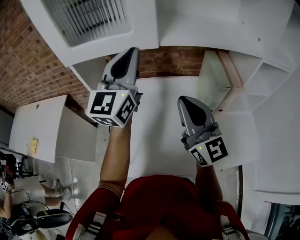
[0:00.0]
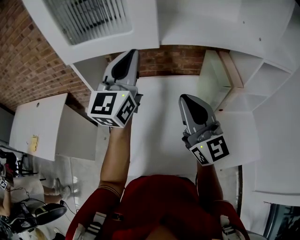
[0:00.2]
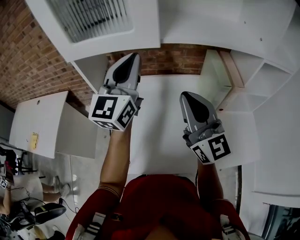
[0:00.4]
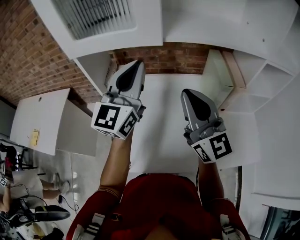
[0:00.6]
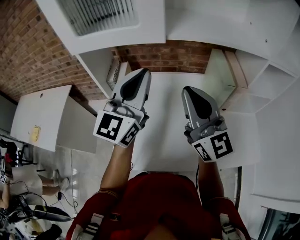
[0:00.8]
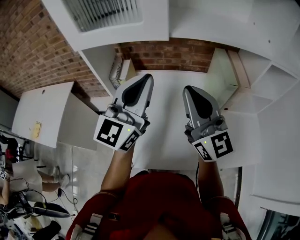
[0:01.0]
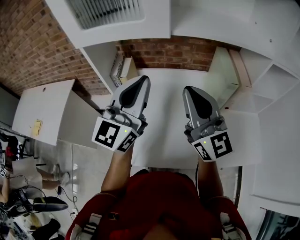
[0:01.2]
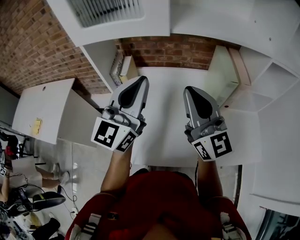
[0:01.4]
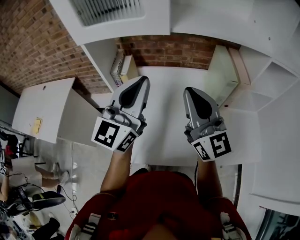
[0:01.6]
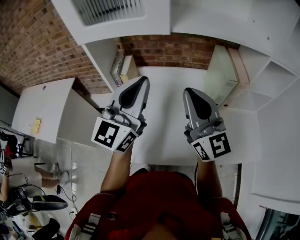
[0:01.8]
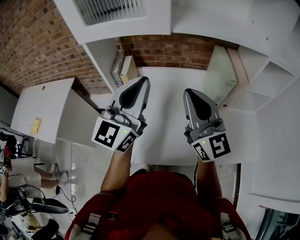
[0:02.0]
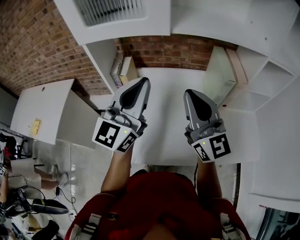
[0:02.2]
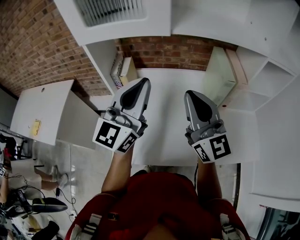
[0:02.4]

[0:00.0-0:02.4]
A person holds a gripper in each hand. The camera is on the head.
0:00.0 to 0:01.2: The left gripper goes roughly 10 cm backward and downward.
0:01.2 to 0:02.4: The grippers make only small movements.

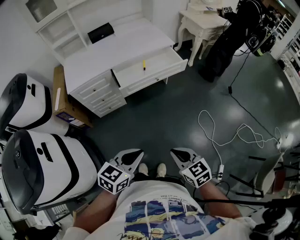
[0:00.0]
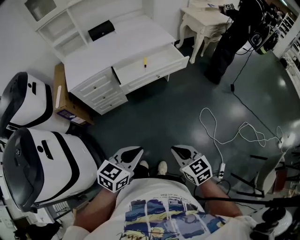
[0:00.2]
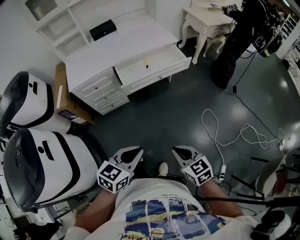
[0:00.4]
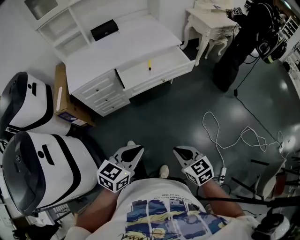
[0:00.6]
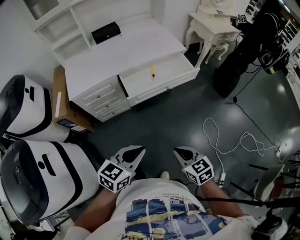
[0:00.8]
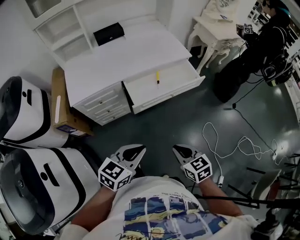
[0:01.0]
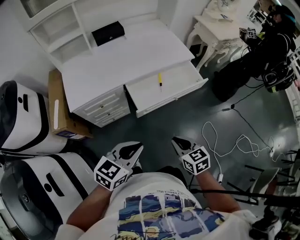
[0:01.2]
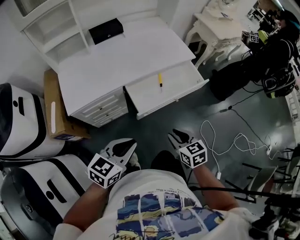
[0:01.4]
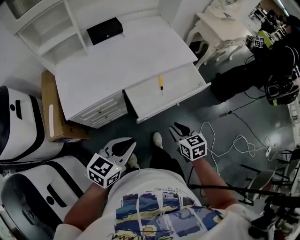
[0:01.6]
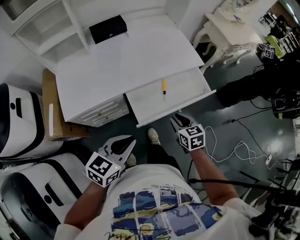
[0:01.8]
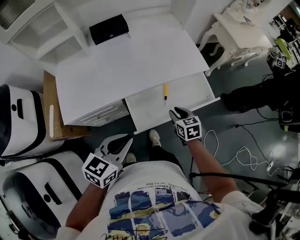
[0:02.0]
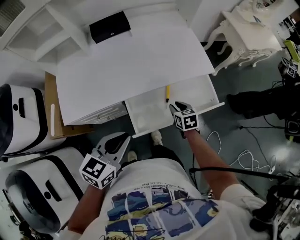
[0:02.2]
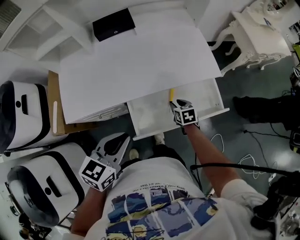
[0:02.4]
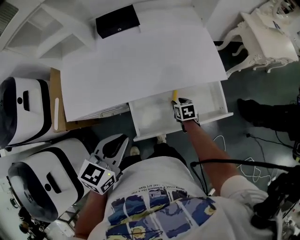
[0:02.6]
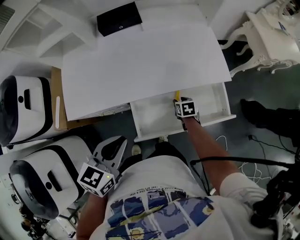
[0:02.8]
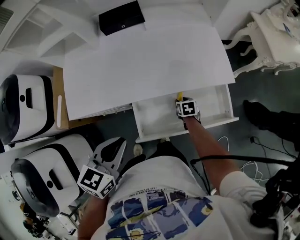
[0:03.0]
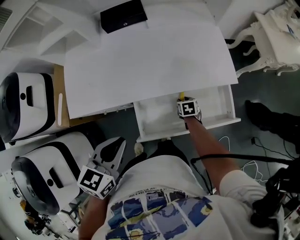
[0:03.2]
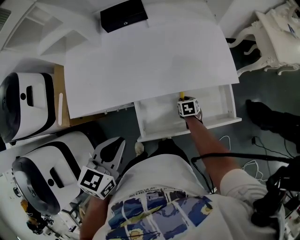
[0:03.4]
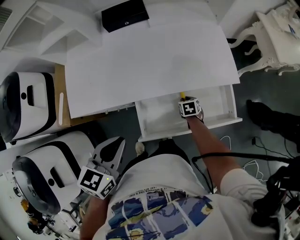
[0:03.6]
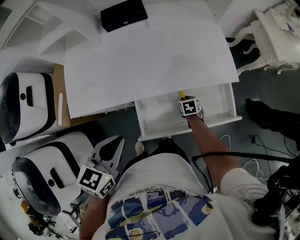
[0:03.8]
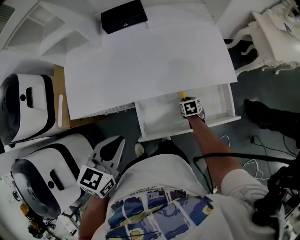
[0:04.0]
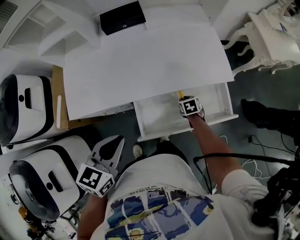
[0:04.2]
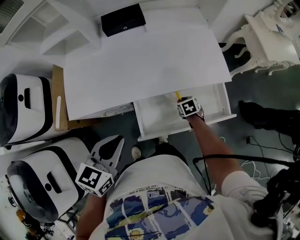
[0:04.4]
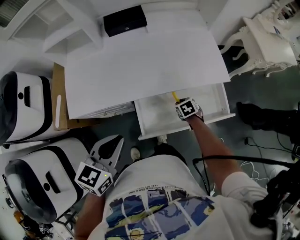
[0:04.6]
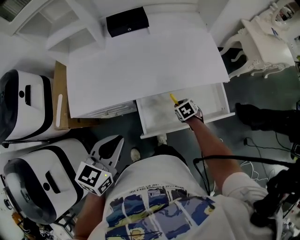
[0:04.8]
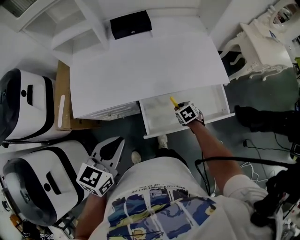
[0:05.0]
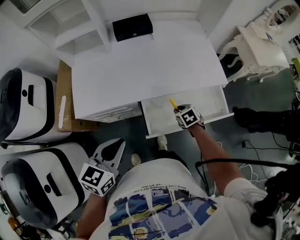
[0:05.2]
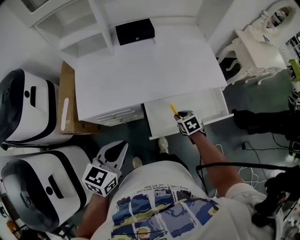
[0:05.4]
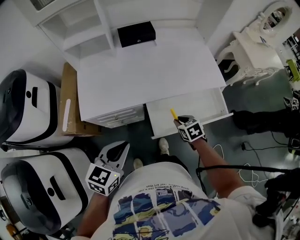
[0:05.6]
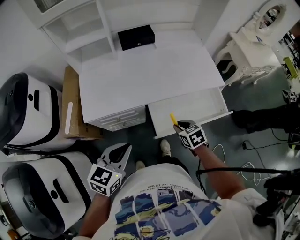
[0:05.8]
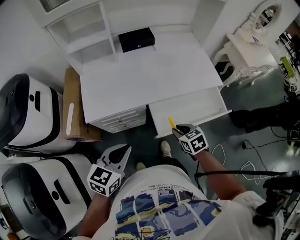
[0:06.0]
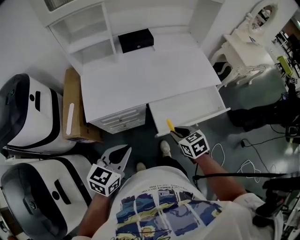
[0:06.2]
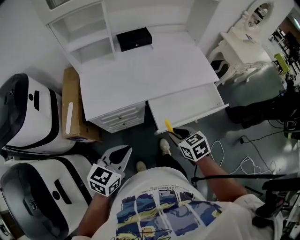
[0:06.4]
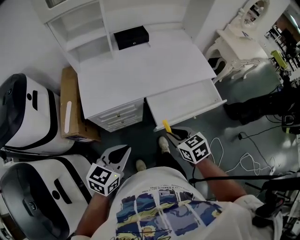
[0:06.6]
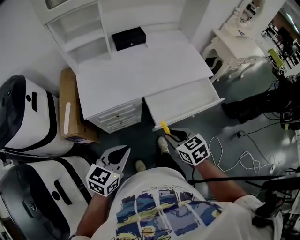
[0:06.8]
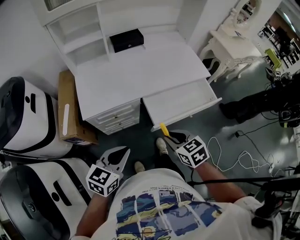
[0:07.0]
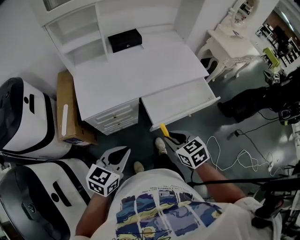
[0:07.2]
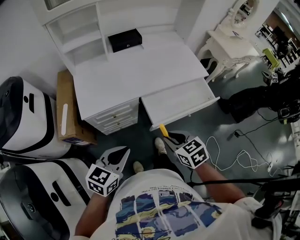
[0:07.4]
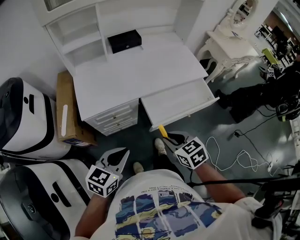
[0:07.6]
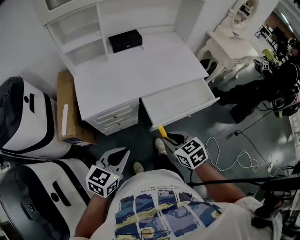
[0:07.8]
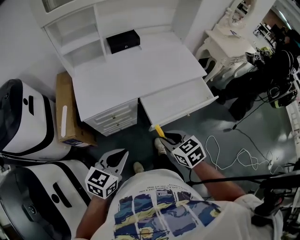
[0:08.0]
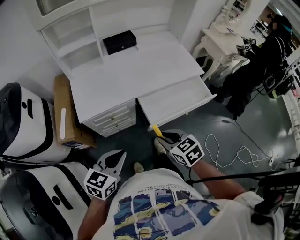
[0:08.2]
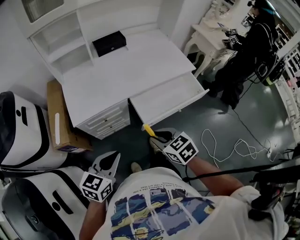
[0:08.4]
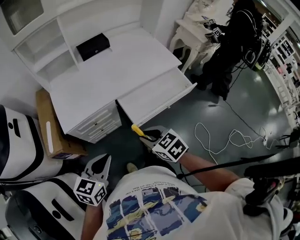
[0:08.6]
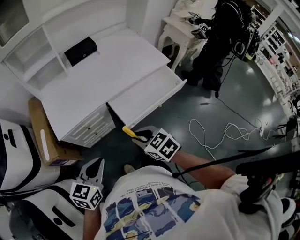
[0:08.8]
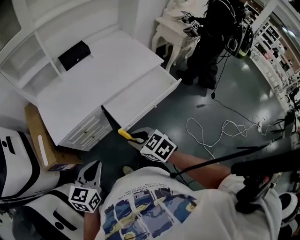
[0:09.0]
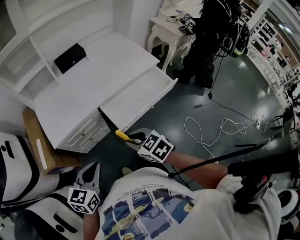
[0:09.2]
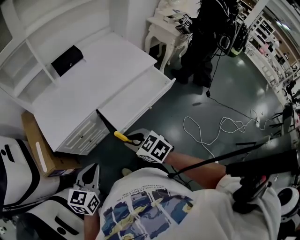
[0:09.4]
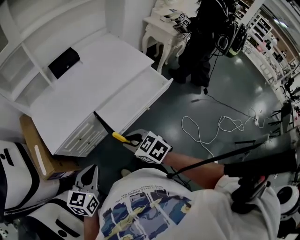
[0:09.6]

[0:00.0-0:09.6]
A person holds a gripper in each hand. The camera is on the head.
0:00.0 to 0:01.6: The right gripper heads forward, covering about 35 cm, and opens its fingers, while the left gripper travels forward and to the left by about 35 cm.
0:01.6 to 0:03.2: The left gripper heads forward, covering some 20 cm, and swivels some 30 degrees; the right gripper moves forward and downward, approximately 40 cm, and changes its angle by roughly 30 degrees.
0:03.2 to 0:04.8: The right gripper heads upward, covering some 5 cm, and rotates about 20 degrees. Meanwhile the left gripper shifts by roughly 5 cm.
0:04.8 to 0:06.4: The right gripper travels upward, backward and to the left by about 35 cm, and rotates approximately 20 degrees. Meanwhile the left gripper goes about 15 cm backward and to the left.
0:06.4 to 0:08.0: The right gripper travels backward by roughly 5 cm.
0:08.0 to 0:09.6: The grippers stay close to where they were, moving slightly.

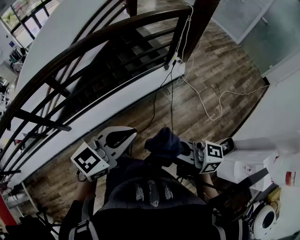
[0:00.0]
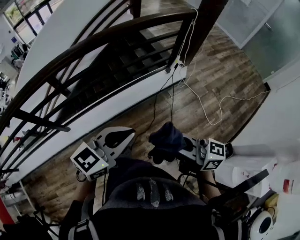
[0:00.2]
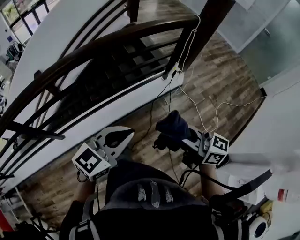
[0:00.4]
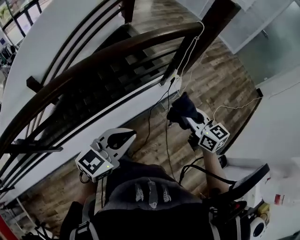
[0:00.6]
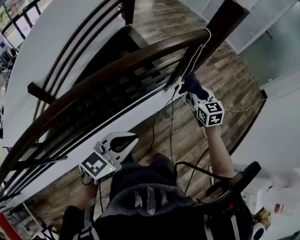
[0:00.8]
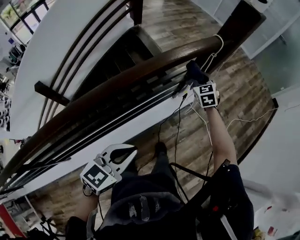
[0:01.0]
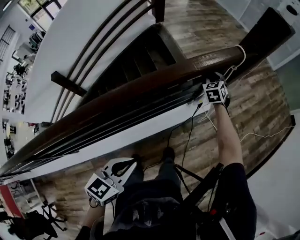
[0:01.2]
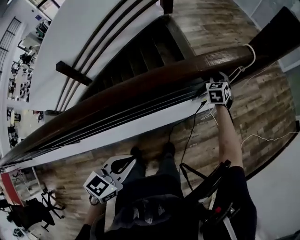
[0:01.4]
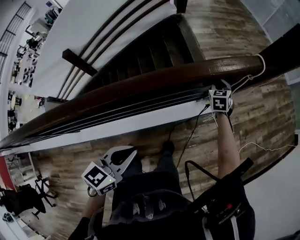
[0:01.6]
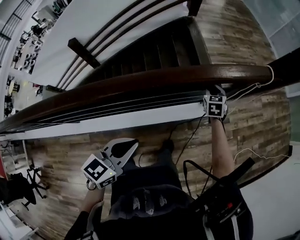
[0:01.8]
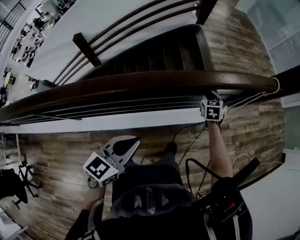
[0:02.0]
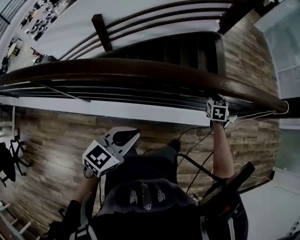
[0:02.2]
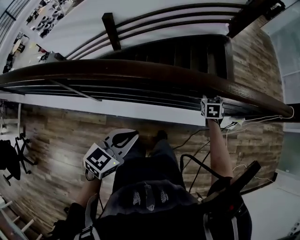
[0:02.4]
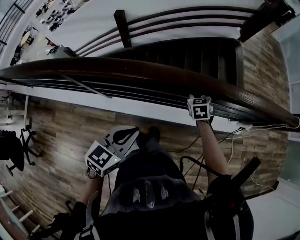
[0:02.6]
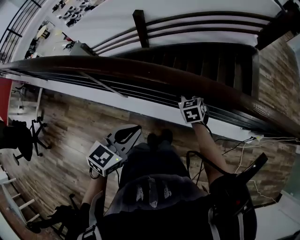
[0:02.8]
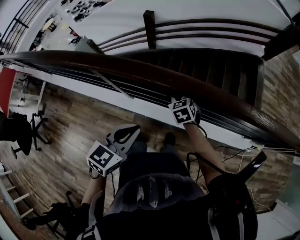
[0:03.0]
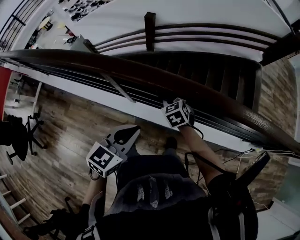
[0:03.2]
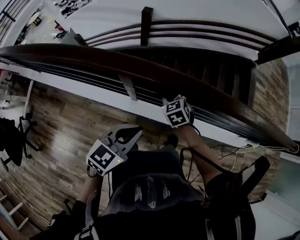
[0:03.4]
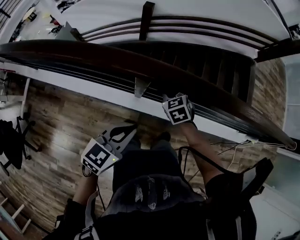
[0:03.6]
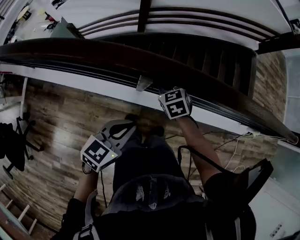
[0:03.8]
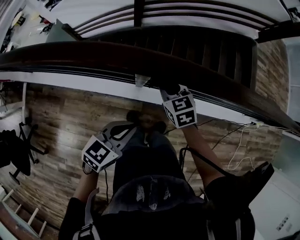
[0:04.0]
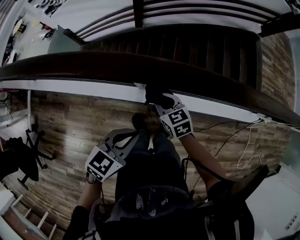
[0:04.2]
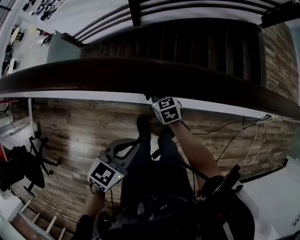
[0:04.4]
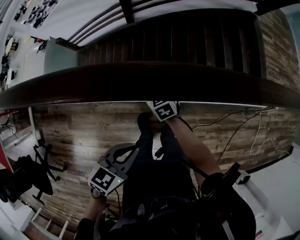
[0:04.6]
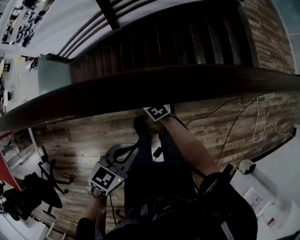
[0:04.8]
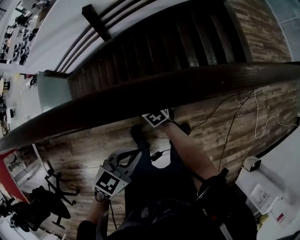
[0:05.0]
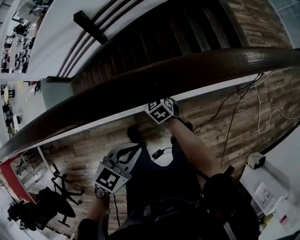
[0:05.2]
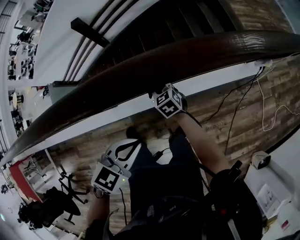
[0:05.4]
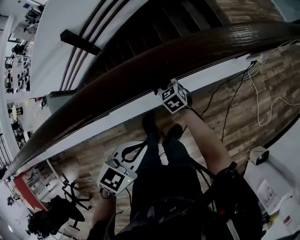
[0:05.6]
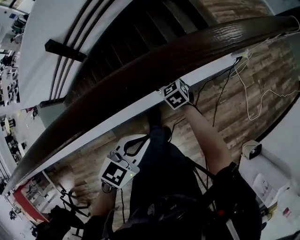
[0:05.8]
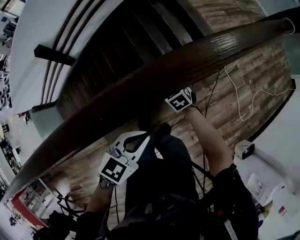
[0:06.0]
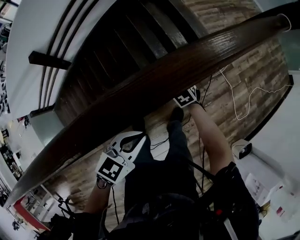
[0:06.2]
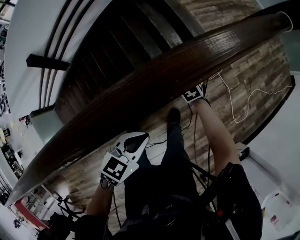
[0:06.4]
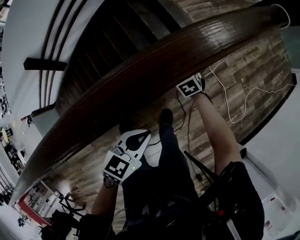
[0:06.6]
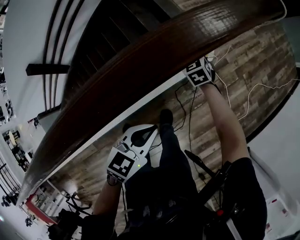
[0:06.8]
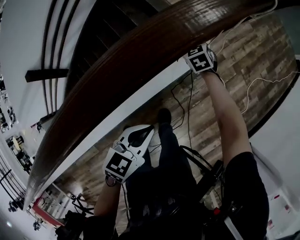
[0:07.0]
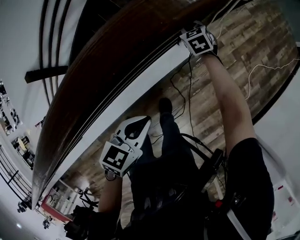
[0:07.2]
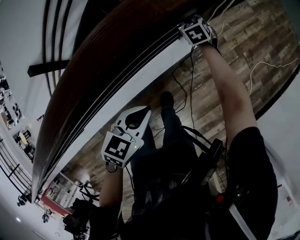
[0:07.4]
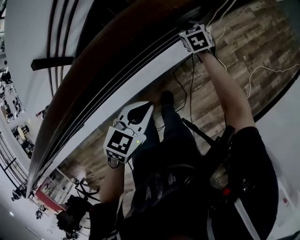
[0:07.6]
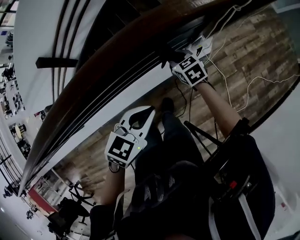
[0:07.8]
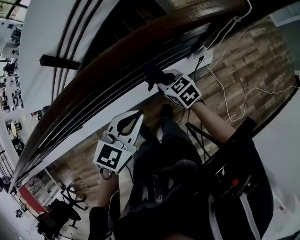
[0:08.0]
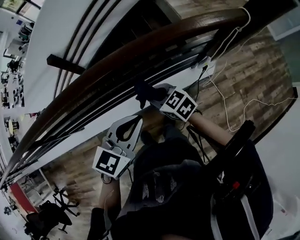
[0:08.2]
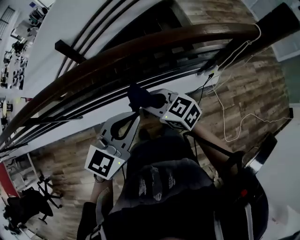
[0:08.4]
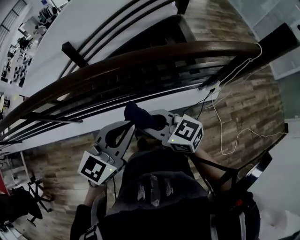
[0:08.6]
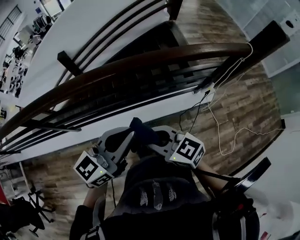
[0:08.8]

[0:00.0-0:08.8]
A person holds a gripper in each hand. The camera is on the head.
0:00.0 to 0:01.4: Both grippers are carried approximately 70 cm. The left gripper rotates roughly 30 degrees, while the right gripper tilts its fingers roughly 50 degrees downward.
0:01.4 to 0:03.0: The pair of grippers is taken approximately 80 cm. The left gripper turns by roughly 30 degrees. The right gripper swivels approximately 60 degrees.
0:03.0 to 0:04.4: Both grippers travel together to the left and downward, roughly 35 cm. The right gripper changes its angle by approximately 20 degrees.
0:04.4 to 0:05.8: Both grippers are carried some 60 cm. The right gripper rotates about 20 degrees; the left gripper changes its angle by about 30 degrees.
0:05.8 to 0:07.4: Both grippers are carried forward and to the right, roughly 50 cm. The right gripper turns by approximately 20 degrees.
0:07.4 to 0:08.8: The right gripper shifts by roughly 80 cm, and tips its fingers upward by some 30 degrees; the left gripper ends up approximately 40 cm from where it was, and tips its fingers upward by about 40 degrees.

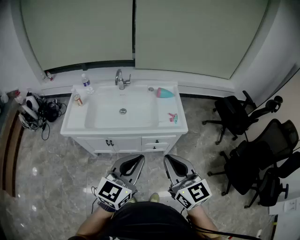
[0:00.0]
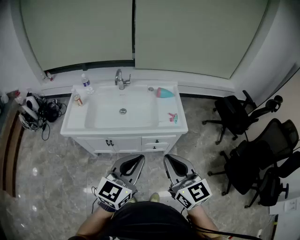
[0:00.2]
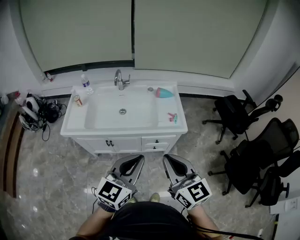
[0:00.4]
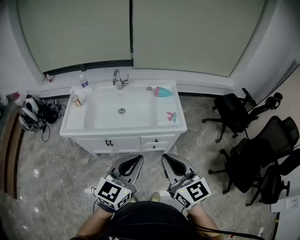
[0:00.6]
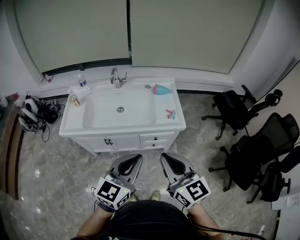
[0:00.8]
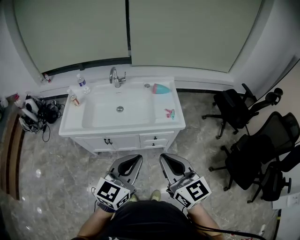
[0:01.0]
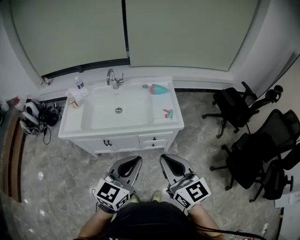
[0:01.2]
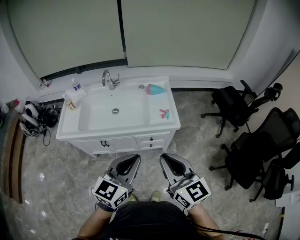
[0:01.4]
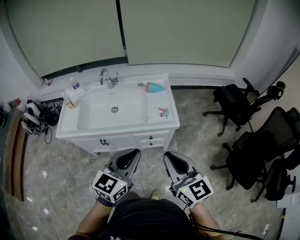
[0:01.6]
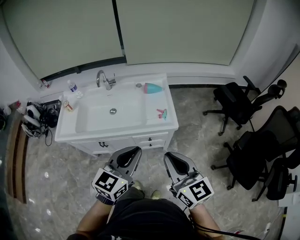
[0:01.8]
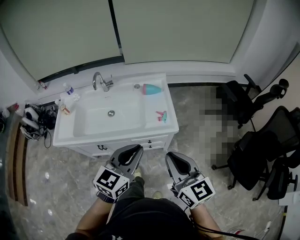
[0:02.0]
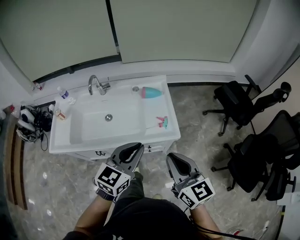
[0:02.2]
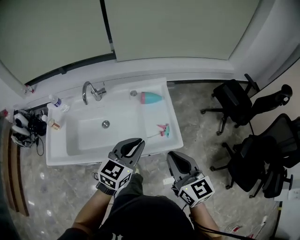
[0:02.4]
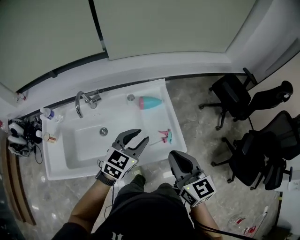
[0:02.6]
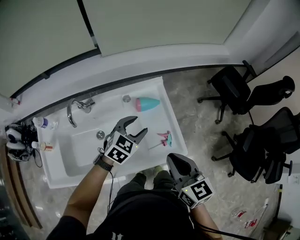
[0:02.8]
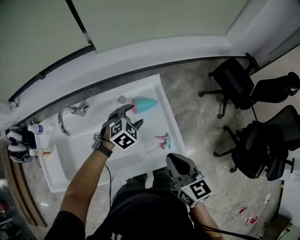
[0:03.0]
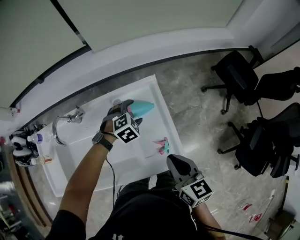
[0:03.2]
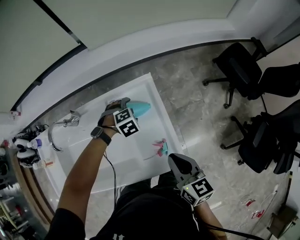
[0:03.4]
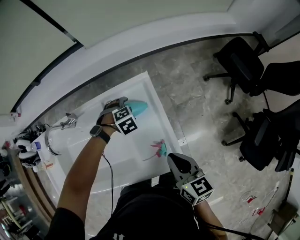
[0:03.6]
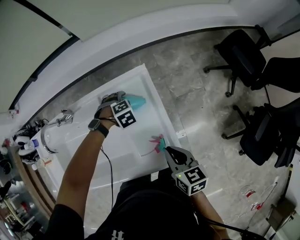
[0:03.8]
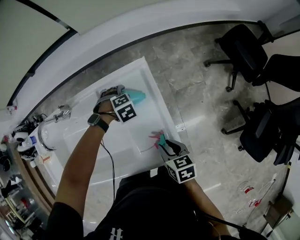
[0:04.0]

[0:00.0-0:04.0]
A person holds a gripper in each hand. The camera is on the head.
0:00.0 to 0:01.4: The grippers both shift to the right by about 5 cm.
0:01.4 to 0:02.6: The grippers both shift forward by roughly 40 cm. The left gripper turns by some 20 degrees.
0:02.6 to 0:04.0: Both grippers move downward, some 30 cm. The left gripper tilts its fingers approximately 60 degrees downward, and opens. Meanwhile the right gripper tilts its fingers about 40 degrees downward.
